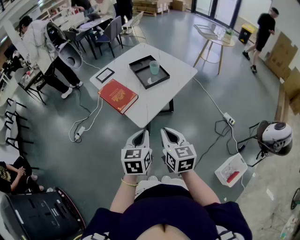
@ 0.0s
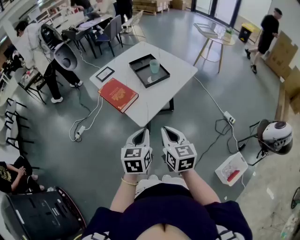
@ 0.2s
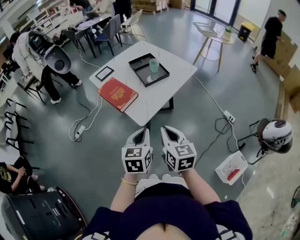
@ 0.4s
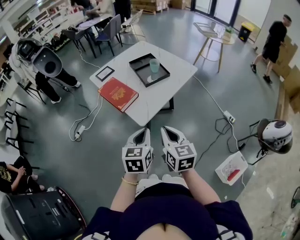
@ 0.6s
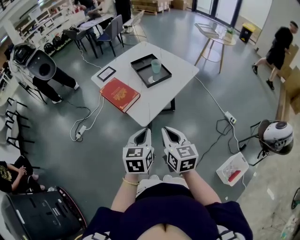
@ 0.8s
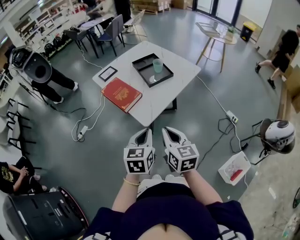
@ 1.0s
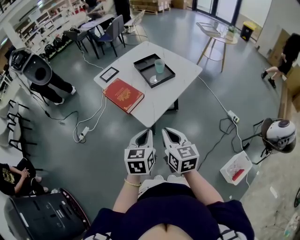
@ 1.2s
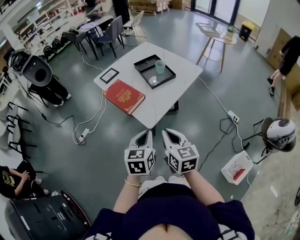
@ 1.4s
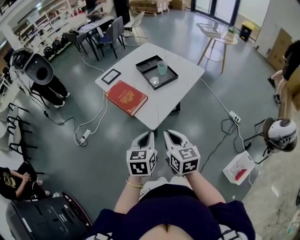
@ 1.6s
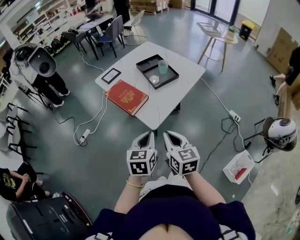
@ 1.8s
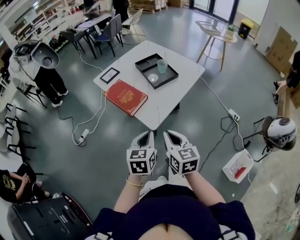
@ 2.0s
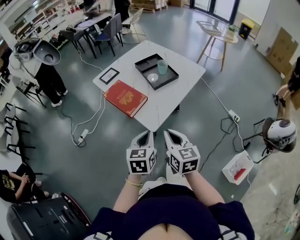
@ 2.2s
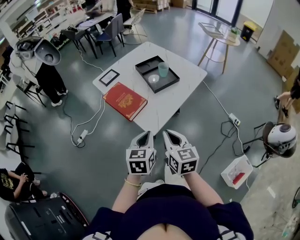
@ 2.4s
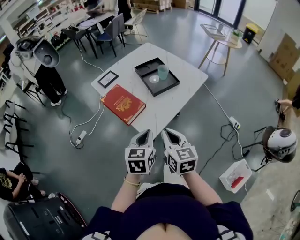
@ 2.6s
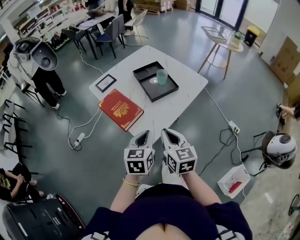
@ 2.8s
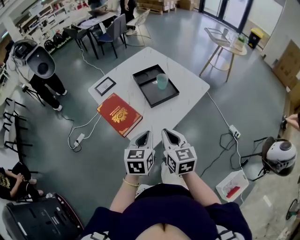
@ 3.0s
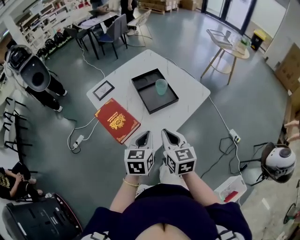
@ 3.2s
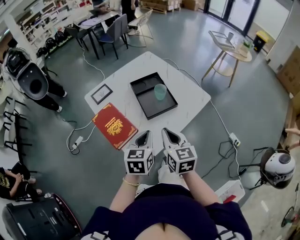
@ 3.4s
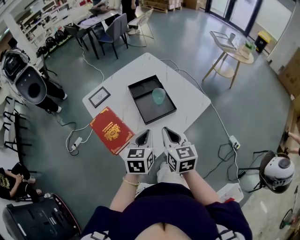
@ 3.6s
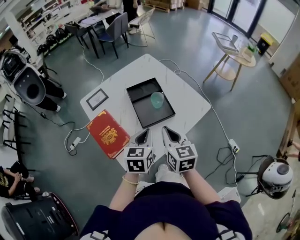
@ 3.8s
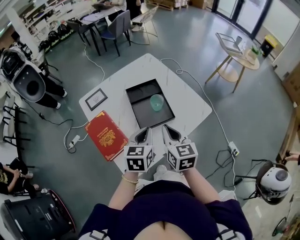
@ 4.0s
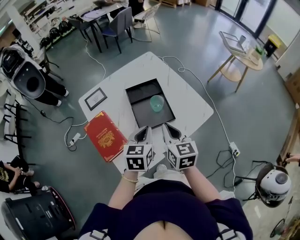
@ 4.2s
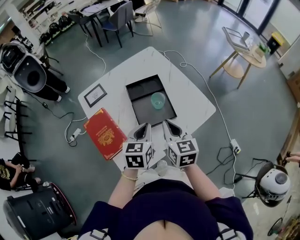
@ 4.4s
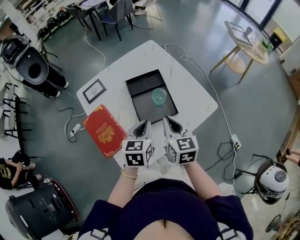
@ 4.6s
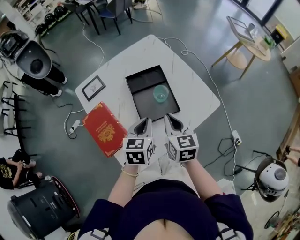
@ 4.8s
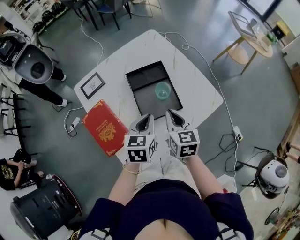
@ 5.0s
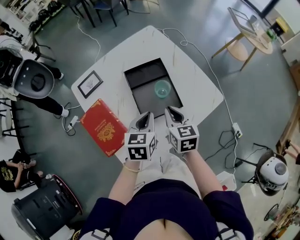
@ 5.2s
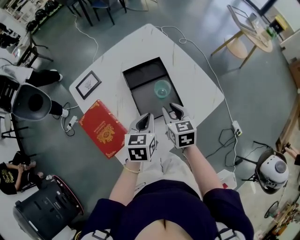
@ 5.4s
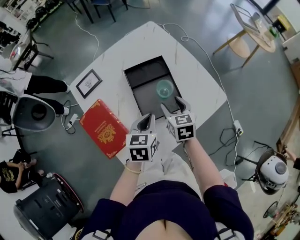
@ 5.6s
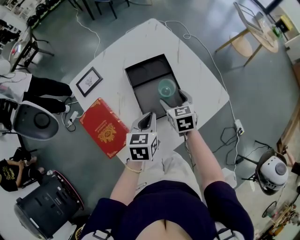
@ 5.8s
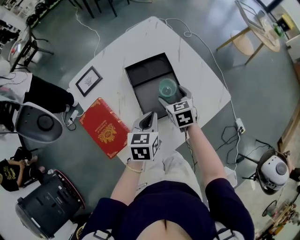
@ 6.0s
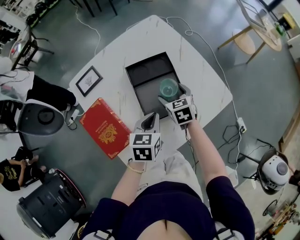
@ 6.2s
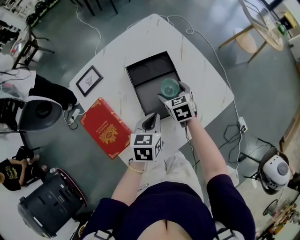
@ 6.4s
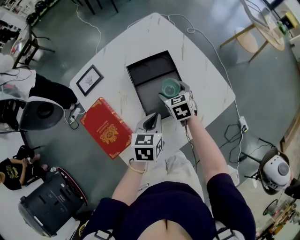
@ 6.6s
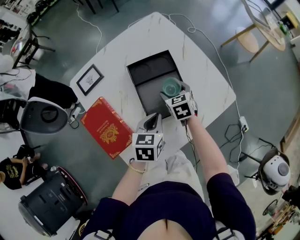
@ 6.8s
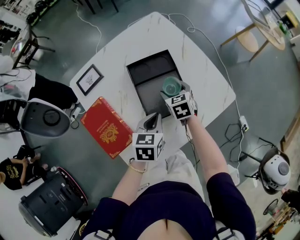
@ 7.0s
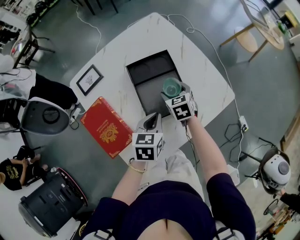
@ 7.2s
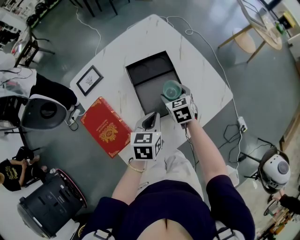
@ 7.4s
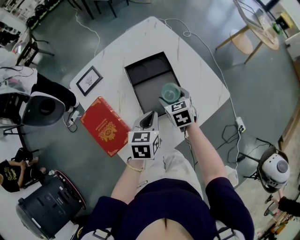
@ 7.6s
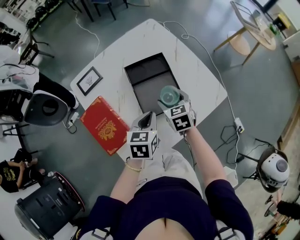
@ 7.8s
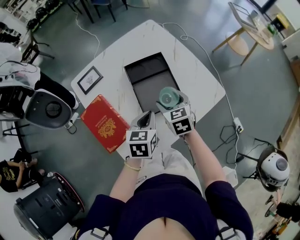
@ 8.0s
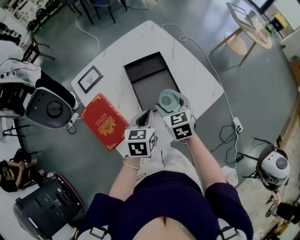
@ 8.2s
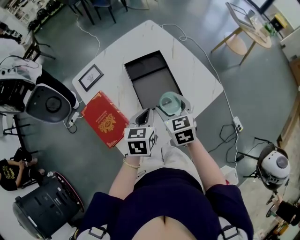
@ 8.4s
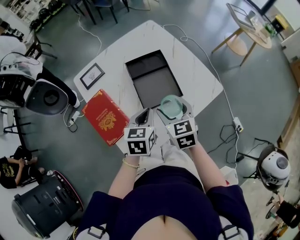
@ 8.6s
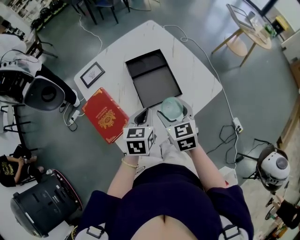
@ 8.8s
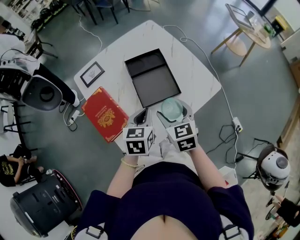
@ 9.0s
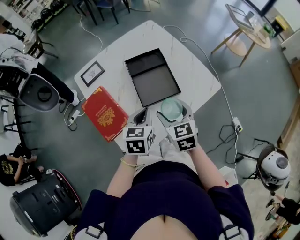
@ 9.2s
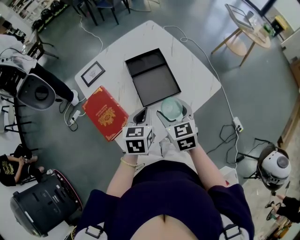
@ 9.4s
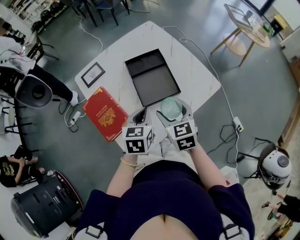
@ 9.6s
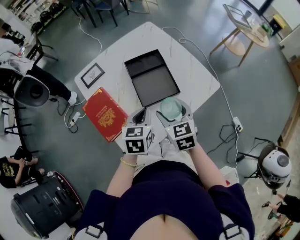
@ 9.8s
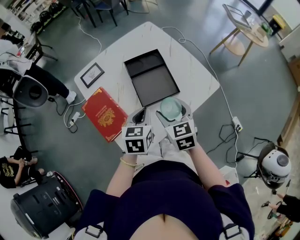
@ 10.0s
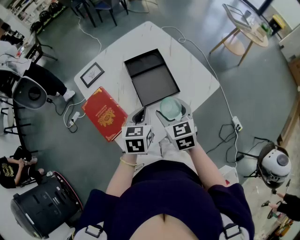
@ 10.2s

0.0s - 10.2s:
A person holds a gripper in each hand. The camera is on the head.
0.0s - 1.4s: There are only small adjustments of the grippers.
1.4s - 3.0s: The grippers both shift forward by some 15 cm.
3.0s - 4.4s: Both grippers move forward, approximately 20 cm.
4.4s - 5.8s: The left gripper travels downward by some 5 cm, while the right gripper is displaced downward and forward by some 20 cm, changes its angle by roughly 20 degrees, and opens up.
5.8s - 7.2s: The right gripper moves downward, roughly 5 cm.
7.2s - 8.8s: The left gripper moves backward and upward, about 10 cm; the right gripper goes some 20 cm backward and upward.
8.8s - 10.2s: The grippers move only a little.

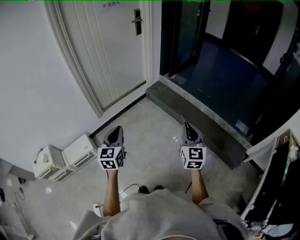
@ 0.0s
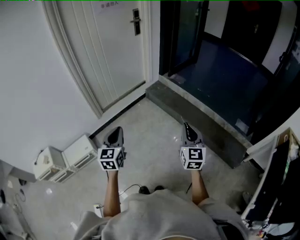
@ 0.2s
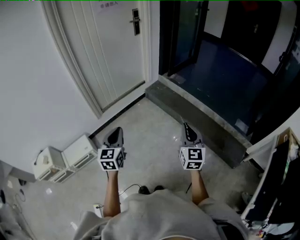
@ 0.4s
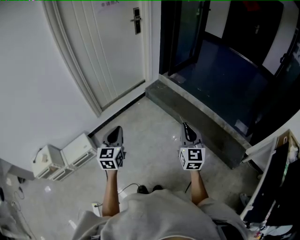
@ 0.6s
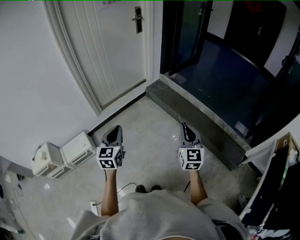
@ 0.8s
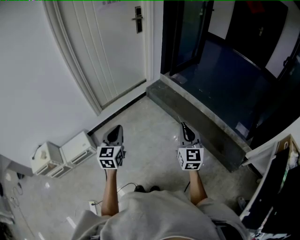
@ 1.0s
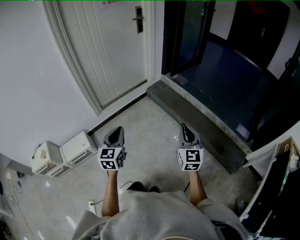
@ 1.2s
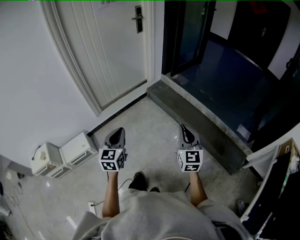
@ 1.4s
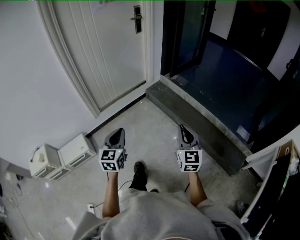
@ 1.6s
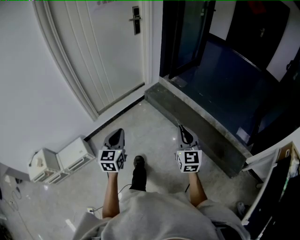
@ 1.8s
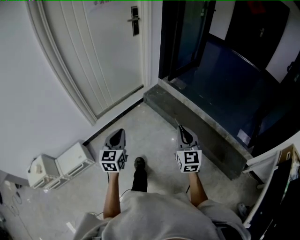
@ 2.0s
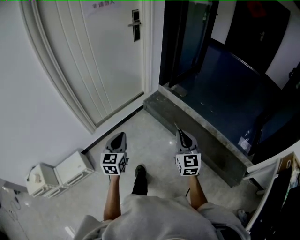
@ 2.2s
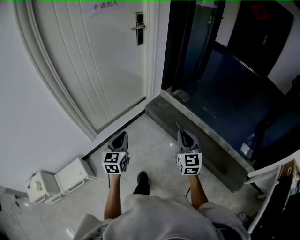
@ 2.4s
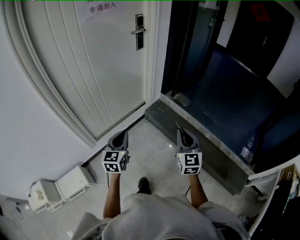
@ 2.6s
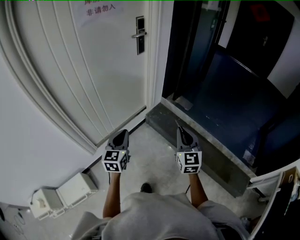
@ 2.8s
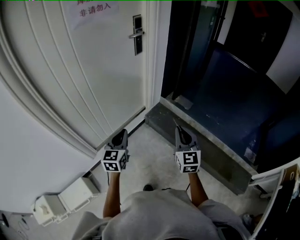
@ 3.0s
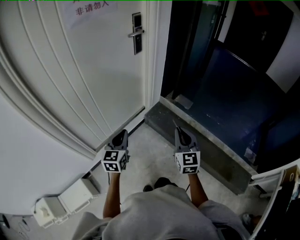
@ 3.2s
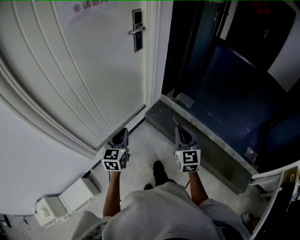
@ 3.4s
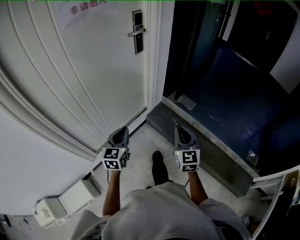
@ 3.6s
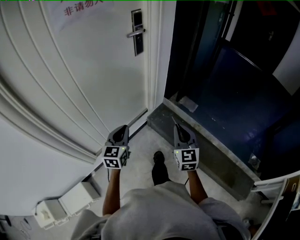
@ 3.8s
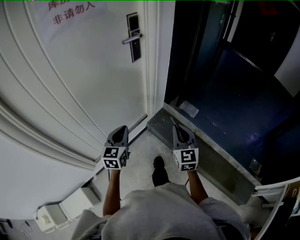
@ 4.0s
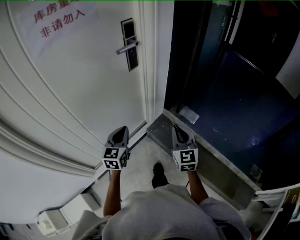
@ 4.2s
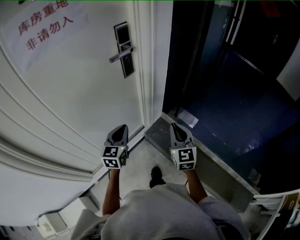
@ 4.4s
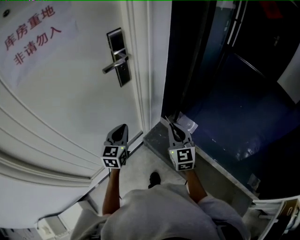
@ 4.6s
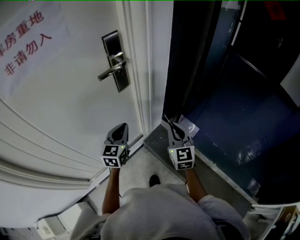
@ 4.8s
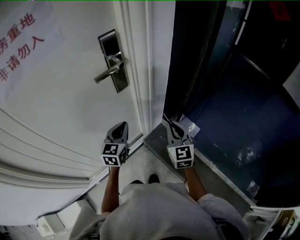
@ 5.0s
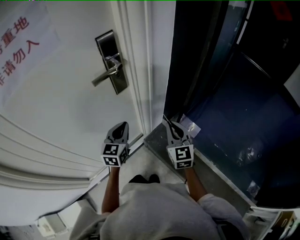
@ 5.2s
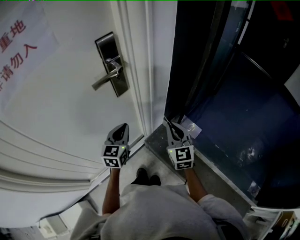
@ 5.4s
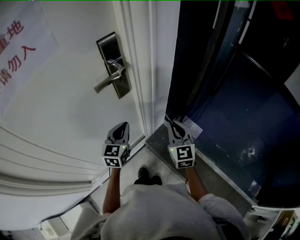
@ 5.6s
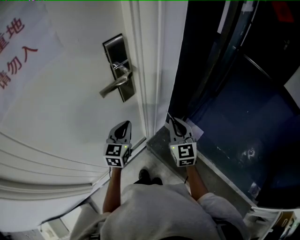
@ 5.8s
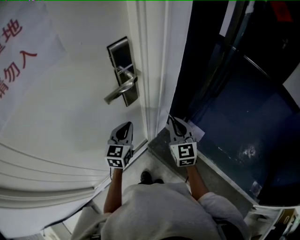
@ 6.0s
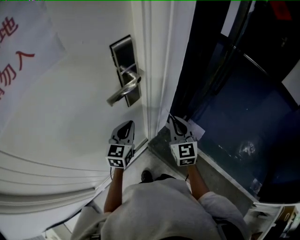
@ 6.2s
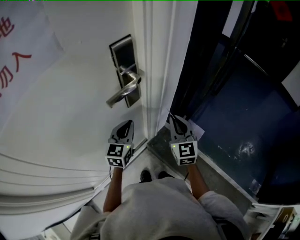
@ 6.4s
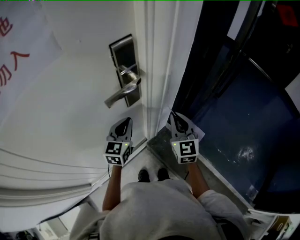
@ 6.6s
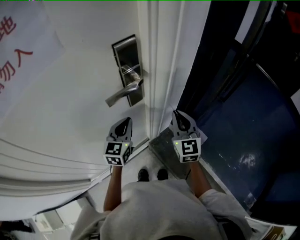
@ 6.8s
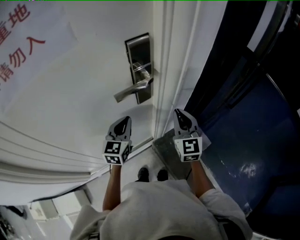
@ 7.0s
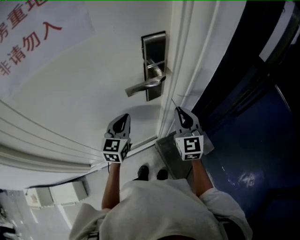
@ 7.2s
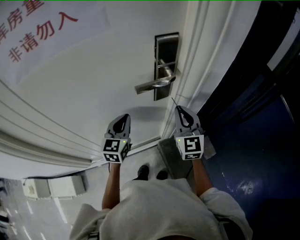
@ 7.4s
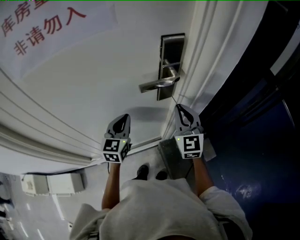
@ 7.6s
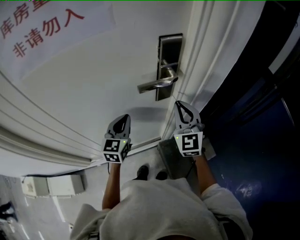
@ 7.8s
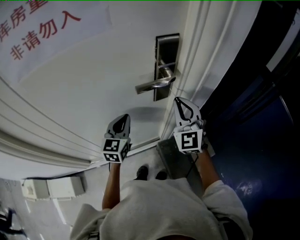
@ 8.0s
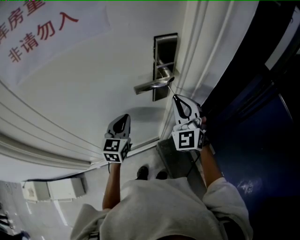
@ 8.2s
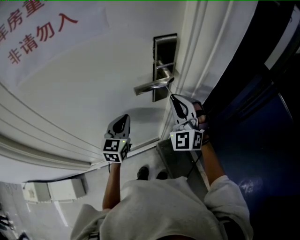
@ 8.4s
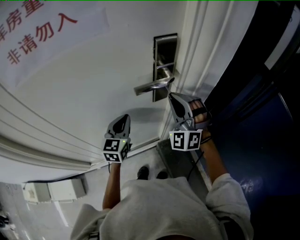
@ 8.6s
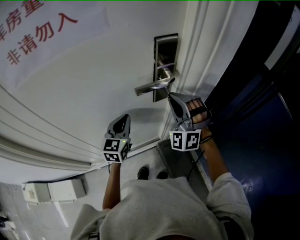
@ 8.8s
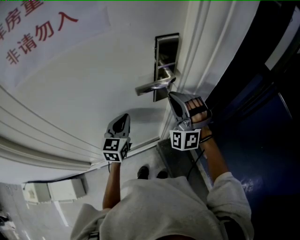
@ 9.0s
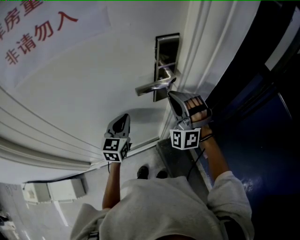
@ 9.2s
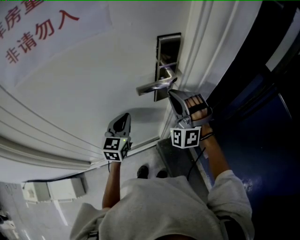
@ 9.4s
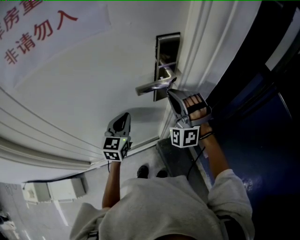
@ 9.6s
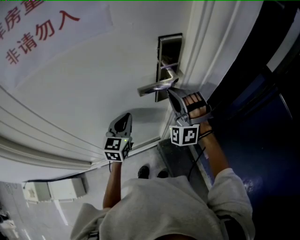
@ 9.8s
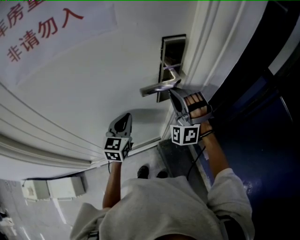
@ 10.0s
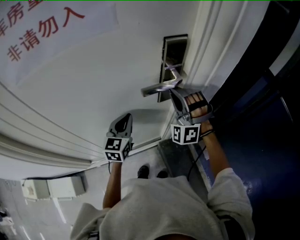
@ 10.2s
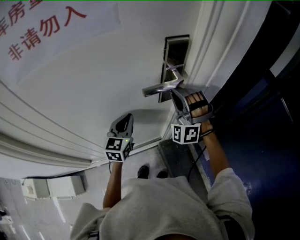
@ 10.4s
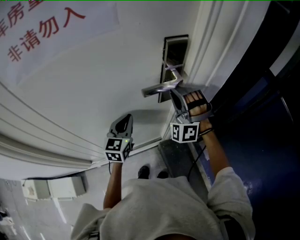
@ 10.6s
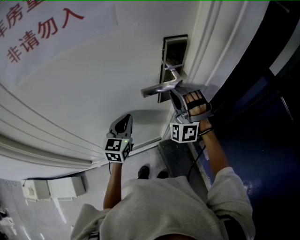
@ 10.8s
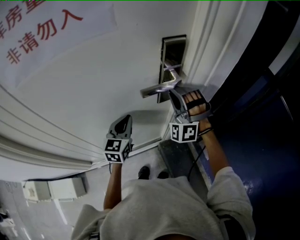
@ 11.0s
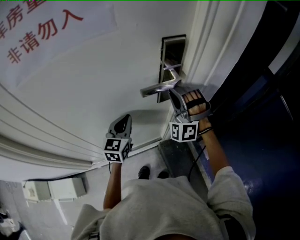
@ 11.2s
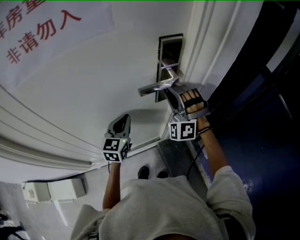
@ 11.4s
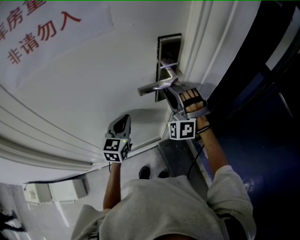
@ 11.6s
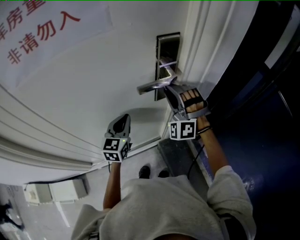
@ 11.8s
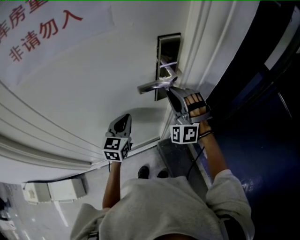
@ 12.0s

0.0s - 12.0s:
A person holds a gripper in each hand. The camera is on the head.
0.0s - 1.6s: Both grippers travel together forward, about 5 cm.
1.6s - 3.0s: The two grippers travel together, forward, approximately 50 cm.
3.0s - 4.4s: Both grippers move forward, about 35 cm.
4.4s - 6.0s: Both grippers move forward, about 25 cm.
6.0s - 7.6s: The right gripper changes place by some 10 cm, and swivels roughly 30 degrees, while the left gripper ends up approximately 10 cm from where it was, and changes its angle by approximately 30 degrees.
7.6s - 9.0s: The right gripper twists about 60 degrees counterclockwise, seen from behind.
9.0s - 10.4s: The grippers move only a little.
10.4s - 12.0s: The right gripper opens its fingers.

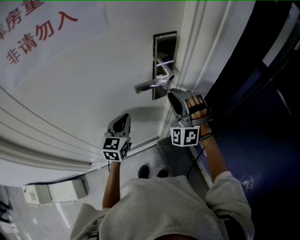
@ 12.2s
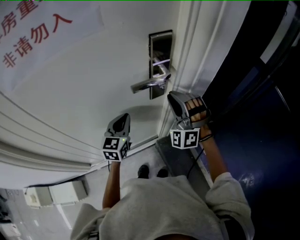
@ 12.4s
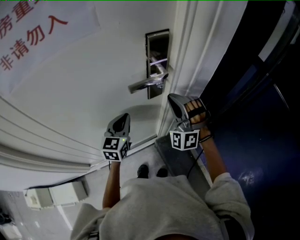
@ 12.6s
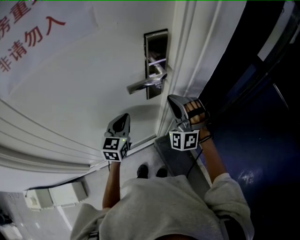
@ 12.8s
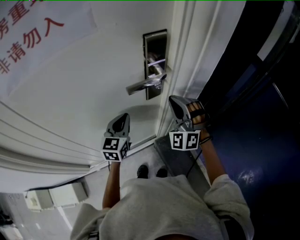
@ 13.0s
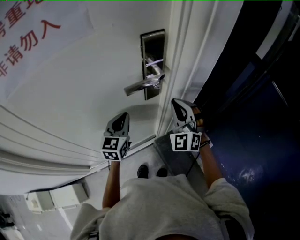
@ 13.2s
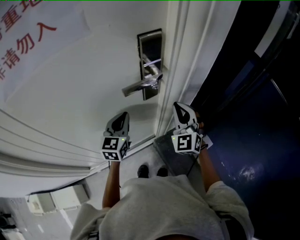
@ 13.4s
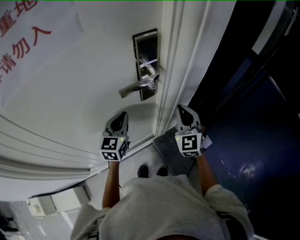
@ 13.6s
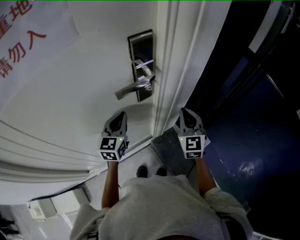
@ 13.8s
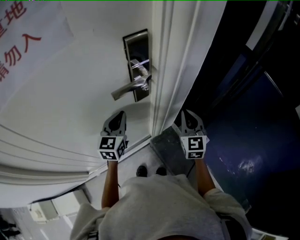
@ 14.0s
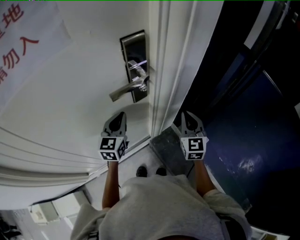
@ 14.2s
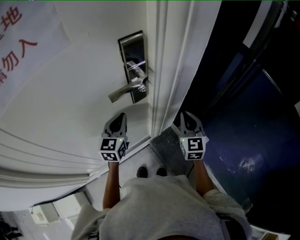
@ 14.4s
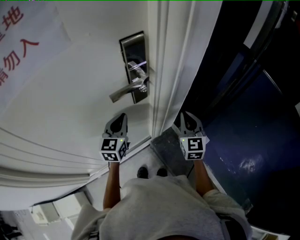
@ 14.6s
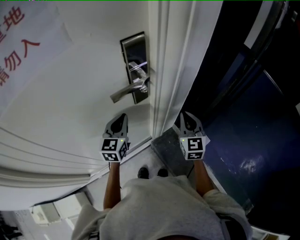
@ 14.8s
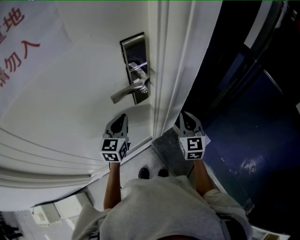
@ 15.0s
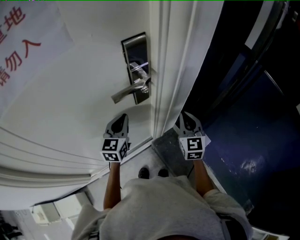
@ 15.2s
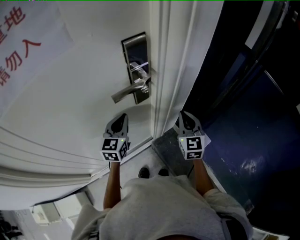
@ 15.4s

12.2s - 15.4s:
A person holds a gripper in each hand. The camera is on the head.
12.2s - 13.8s: The right gripper heads to the right and downward, covering some 15 cm, rolls clockwise, seen from behind, by some 60 degrees, and closes its fingers.
13.8s - 15.4s: There are only small adjustments of the grippers.
